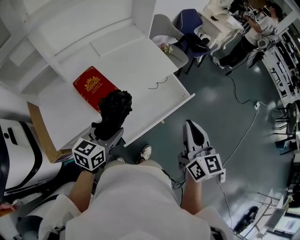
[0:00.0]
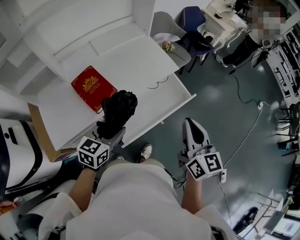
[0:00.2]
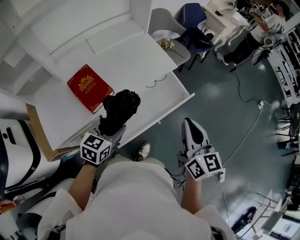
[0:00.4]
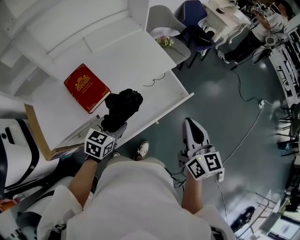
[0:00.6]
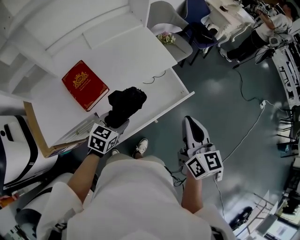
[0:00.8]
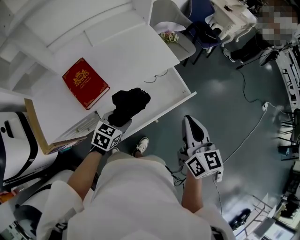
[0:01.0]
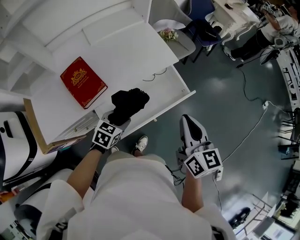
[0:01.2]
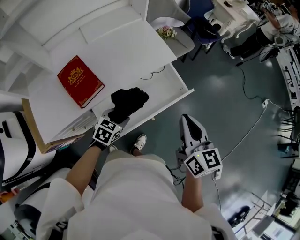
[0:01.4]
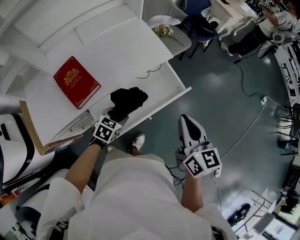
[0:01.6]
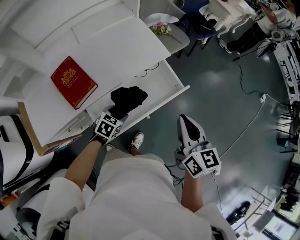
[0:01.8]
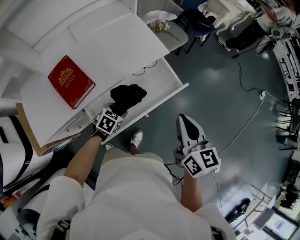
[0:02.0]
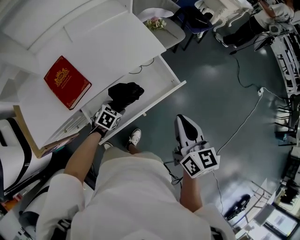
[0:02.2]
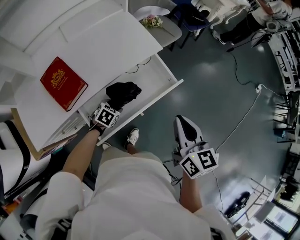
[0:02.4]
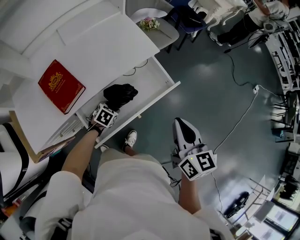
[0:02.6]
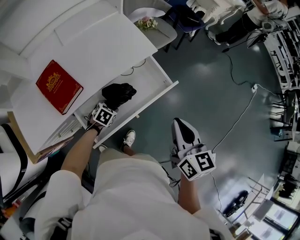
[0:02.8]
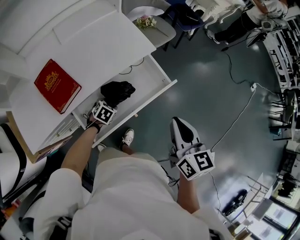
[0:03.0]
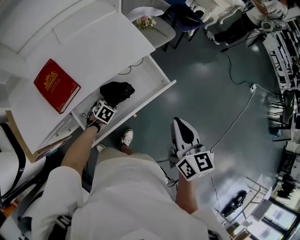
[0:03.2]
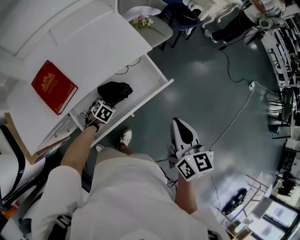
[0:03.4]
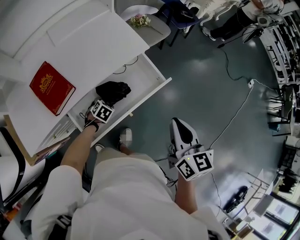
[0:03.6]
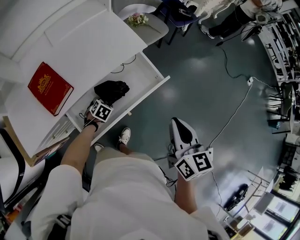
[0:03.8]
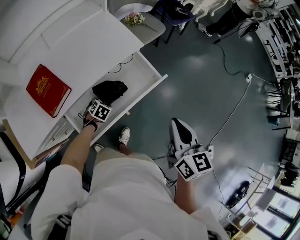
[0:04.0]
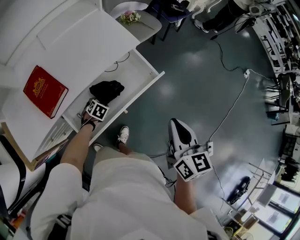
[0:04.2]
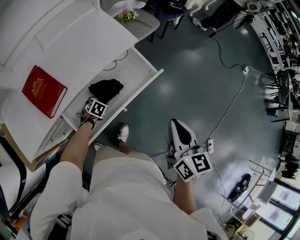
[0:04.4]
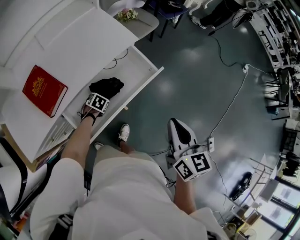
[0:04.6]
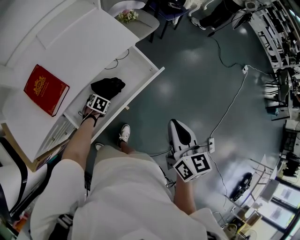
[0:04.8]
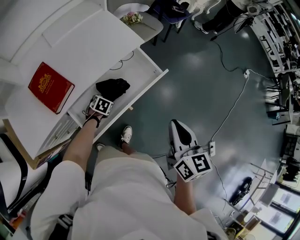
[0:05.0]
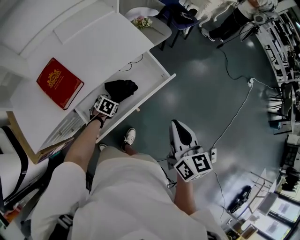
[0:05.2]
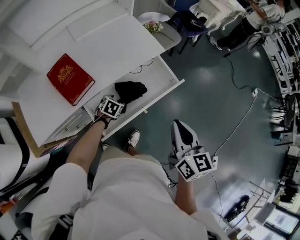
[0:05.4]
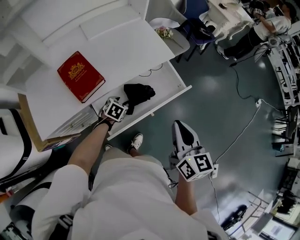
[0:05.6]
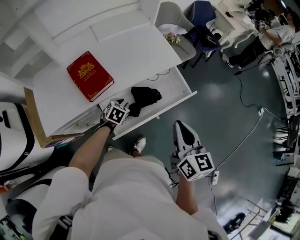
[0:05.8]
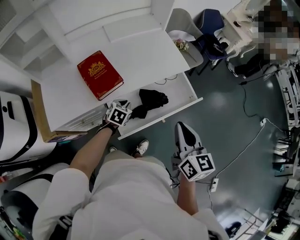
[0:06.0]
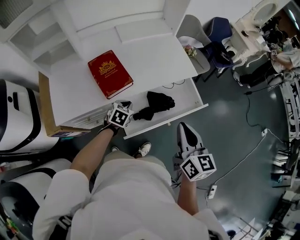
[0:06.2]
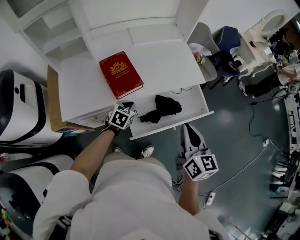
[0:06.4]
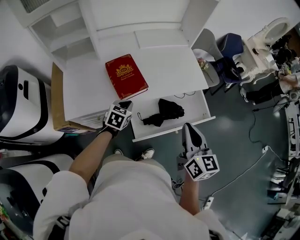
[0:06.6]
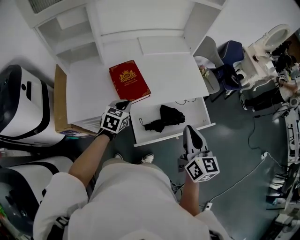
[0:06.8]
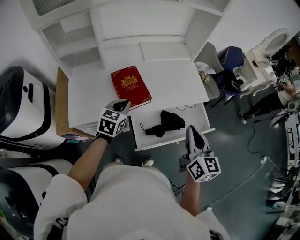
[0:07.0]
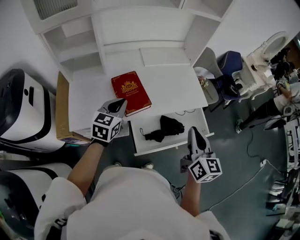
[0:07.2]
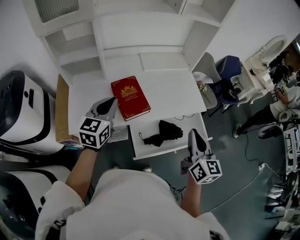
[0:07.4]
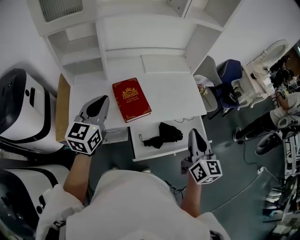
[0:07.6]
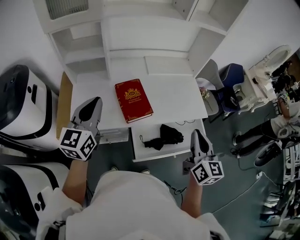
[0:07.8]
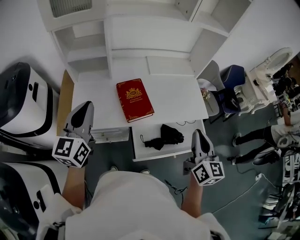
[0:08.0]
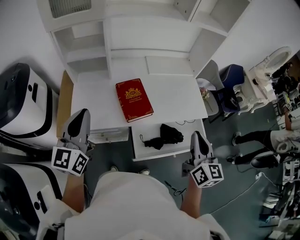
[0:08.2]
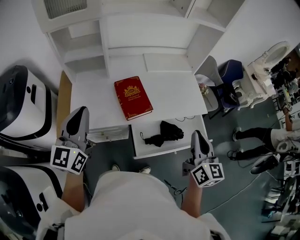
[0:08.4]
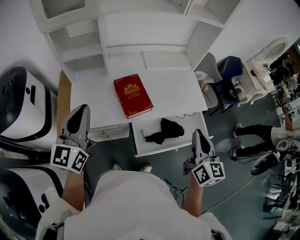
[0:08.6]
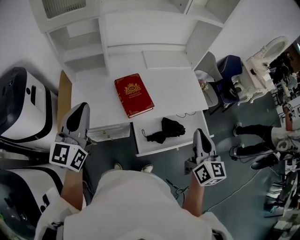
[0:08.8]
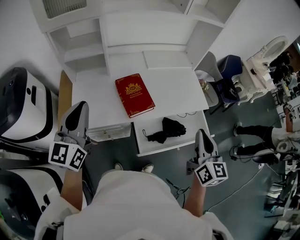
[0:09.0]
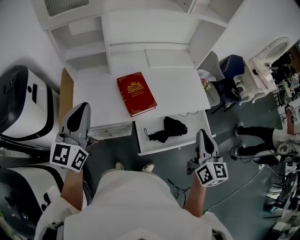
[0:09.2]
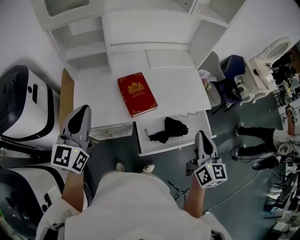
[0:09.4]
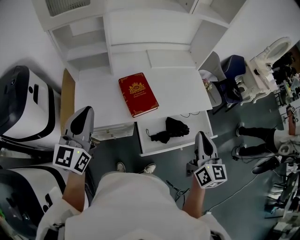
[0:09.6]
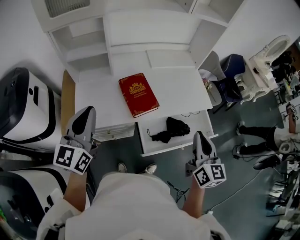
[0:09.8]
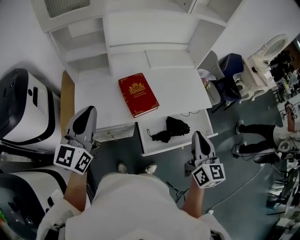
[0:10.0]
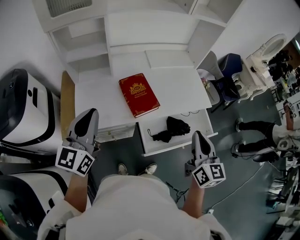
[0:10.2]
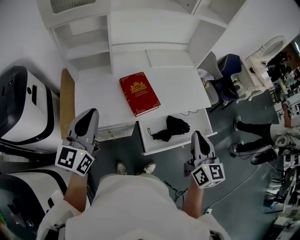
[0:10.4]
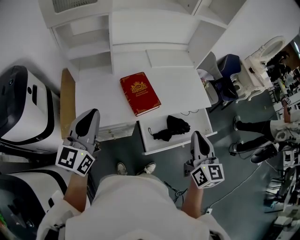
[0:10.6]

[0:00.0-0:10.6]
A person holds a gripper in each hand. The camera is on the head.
0:00.0 to 0:01.6: The right gripper goes some 15 cm forward, downward and to the right, while the left gripper travels downward, forward and to the right by about 25 cm, and swivels approximately 30 degrees.
0:01.6 to 0:03.0: The left gripper travels downward and forward by roughly 15 cm.
0:03.0 to 0:04.6: The right gripper moves about 5 cm; the left gripper shifts about 5 cm downward.
0:04.6 to 0:06.0: The right gripper moves about 15 cm. Meanwhile the left gripper shifts approximately 15 cm upward, turns by about 30 degrees, and closes its fingers.
0:06.0 to 0:07.6: The right gripper goes about 15 cm forward, upward and to the left. Meanwhile the left gripper moves upward and to the left, some 40 cm, and angles its fingers upward, by approximately 40 degrees.
0:07.6 to 0:09.0: The left gripper is displaced to the left, backward and upward by about 10 cm.
0:09.0 to 0:10.6: The right gripper shifts approximately 5 cm to the left.

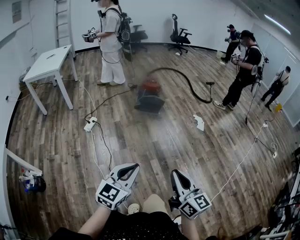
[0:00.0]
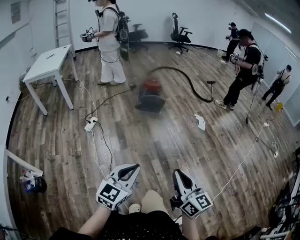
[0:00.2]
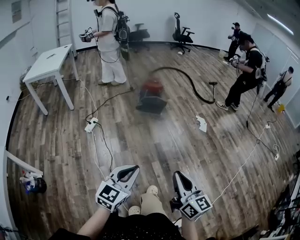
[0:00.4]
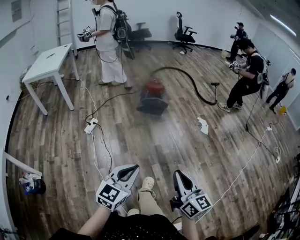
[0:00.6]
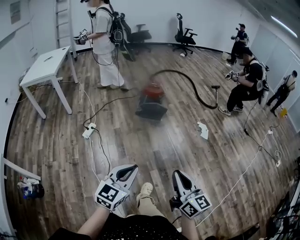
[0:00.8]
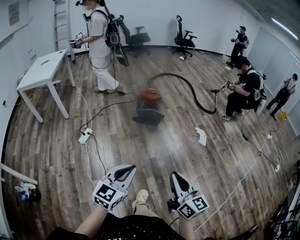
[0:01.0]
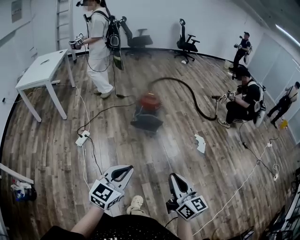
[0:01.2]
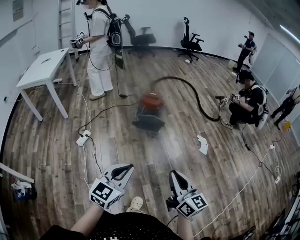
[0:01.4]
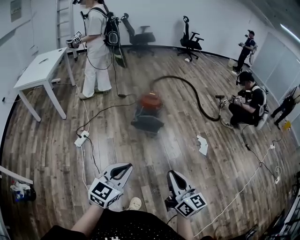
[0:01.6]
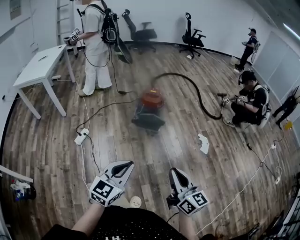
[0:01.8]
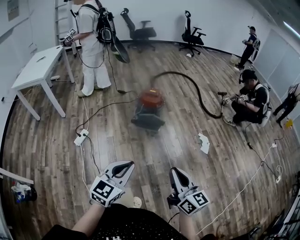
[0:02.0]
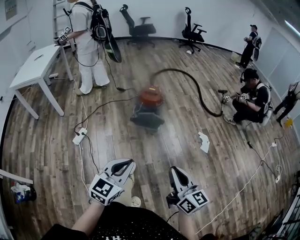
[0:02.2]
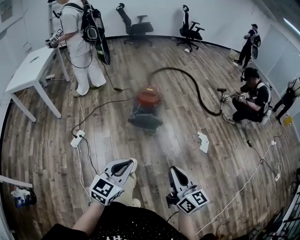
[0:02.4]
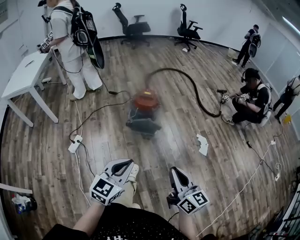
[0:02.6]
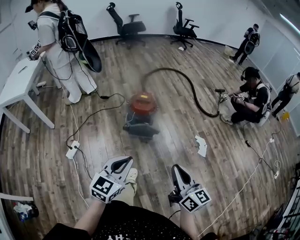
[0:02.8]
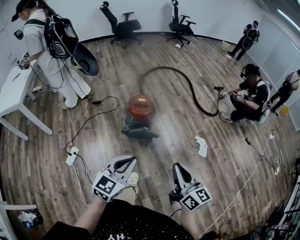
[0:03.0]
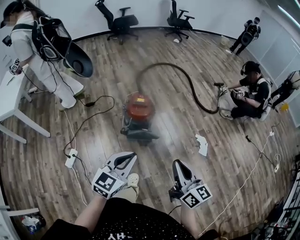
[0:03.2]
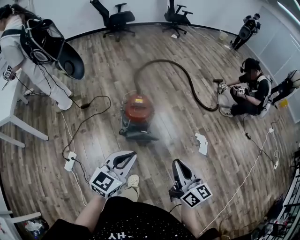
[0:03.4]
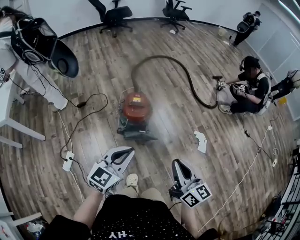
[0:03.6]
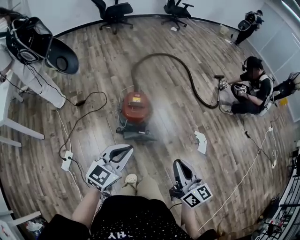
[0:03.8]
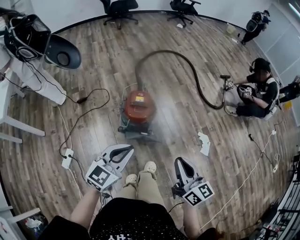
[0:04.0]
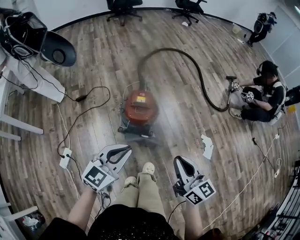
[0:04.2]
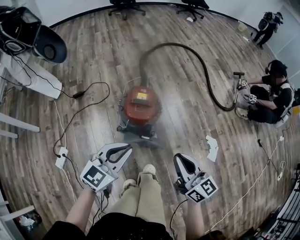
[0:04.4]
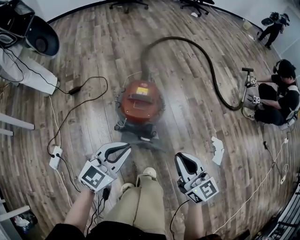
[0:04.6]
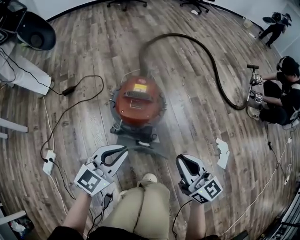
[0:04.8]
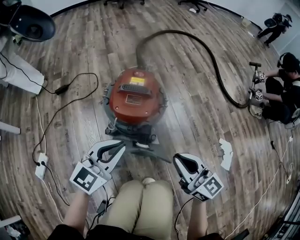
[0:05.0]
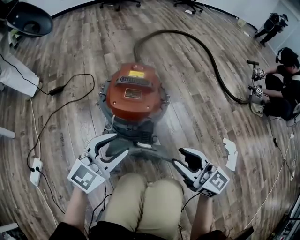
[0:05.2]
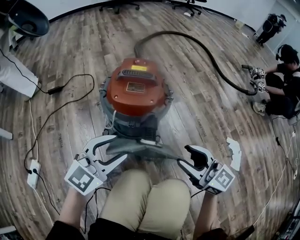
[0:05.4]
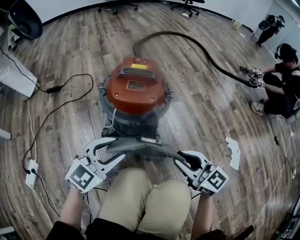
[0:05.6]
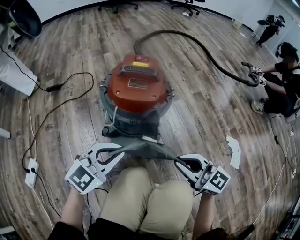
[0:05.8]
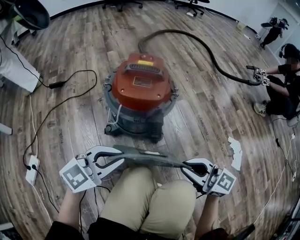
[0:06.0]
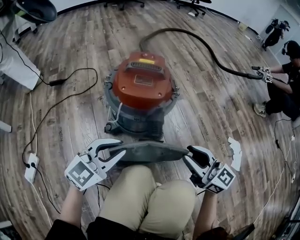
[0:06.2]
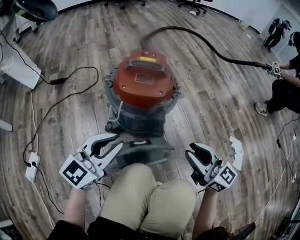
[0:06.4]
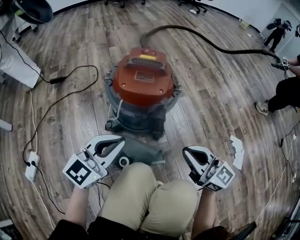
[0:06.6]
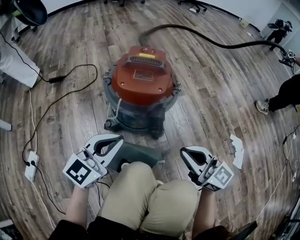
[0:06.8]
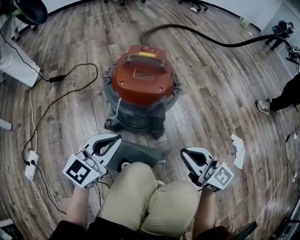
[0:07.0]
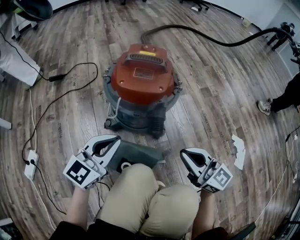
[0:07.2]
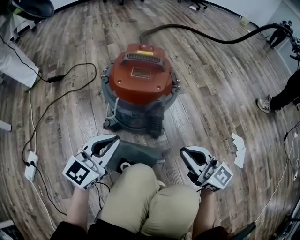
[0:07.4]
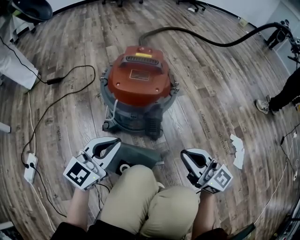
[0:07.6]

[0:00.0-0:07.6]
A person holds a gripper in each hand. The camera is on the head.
0:00.0 to 0:01.6: The grippers both shift forward by roughly 35 cm.
0:01.6 to 0:03.0: Both grippers travel together forward, about 30 cm.
0:03.0 to 0:04.6: The grippers both shift forward and downward by roughly 40 cm.
0:04.6 to 0:06.0: Both grippers travel together downward, about 30 cm. The right gripper turns by some 20 degrees, and opens and closes again. The left gripper opens, then closes once more.

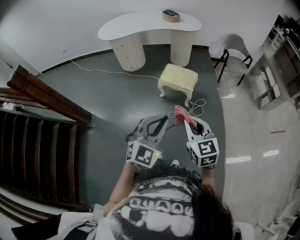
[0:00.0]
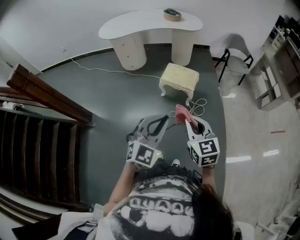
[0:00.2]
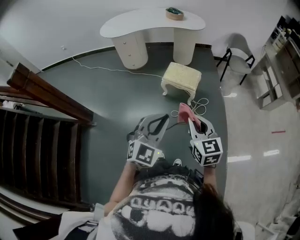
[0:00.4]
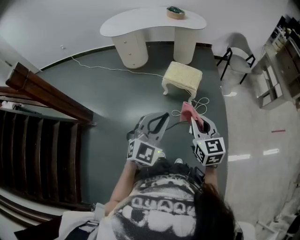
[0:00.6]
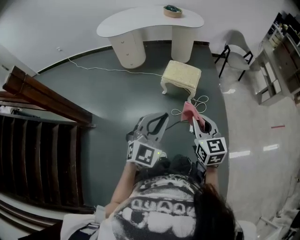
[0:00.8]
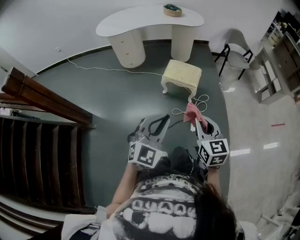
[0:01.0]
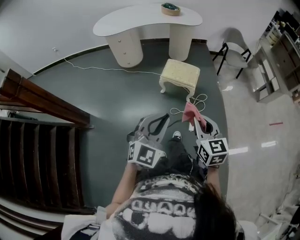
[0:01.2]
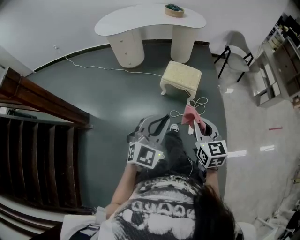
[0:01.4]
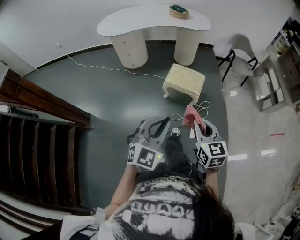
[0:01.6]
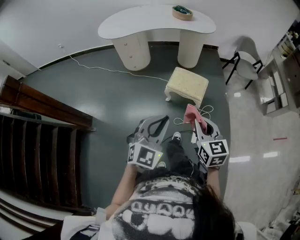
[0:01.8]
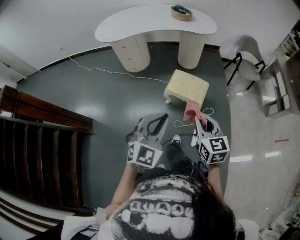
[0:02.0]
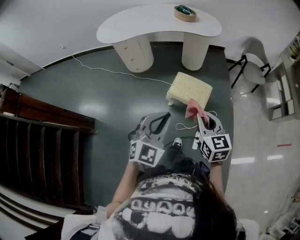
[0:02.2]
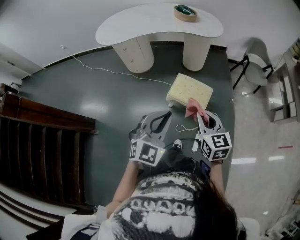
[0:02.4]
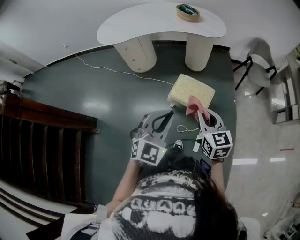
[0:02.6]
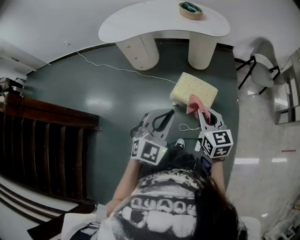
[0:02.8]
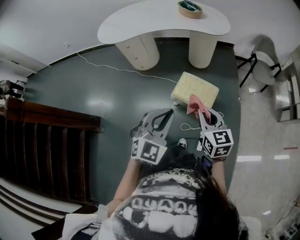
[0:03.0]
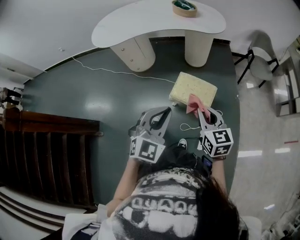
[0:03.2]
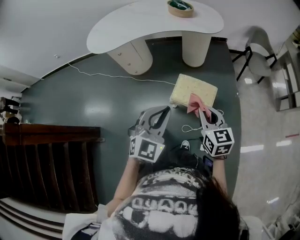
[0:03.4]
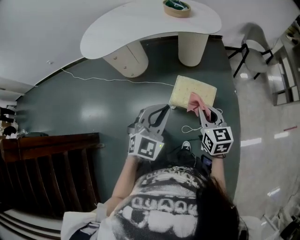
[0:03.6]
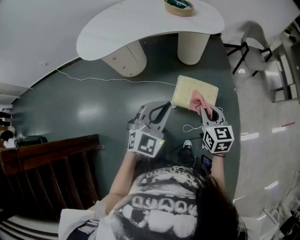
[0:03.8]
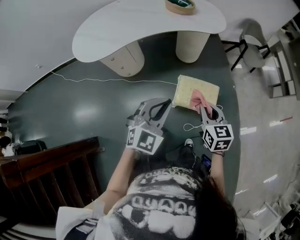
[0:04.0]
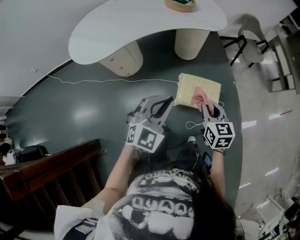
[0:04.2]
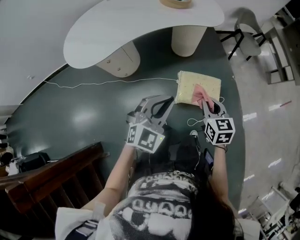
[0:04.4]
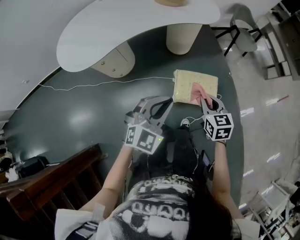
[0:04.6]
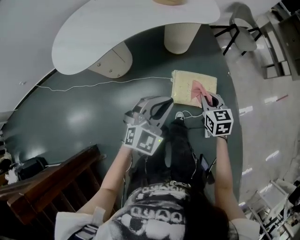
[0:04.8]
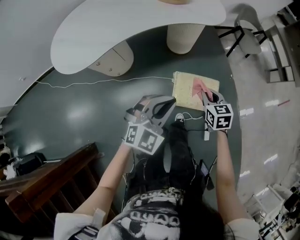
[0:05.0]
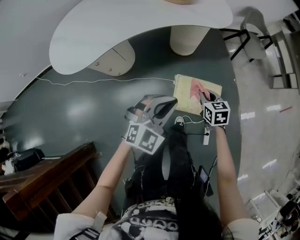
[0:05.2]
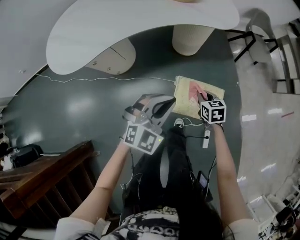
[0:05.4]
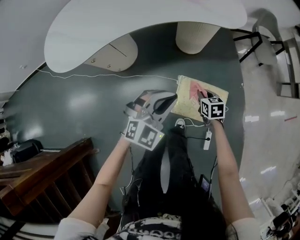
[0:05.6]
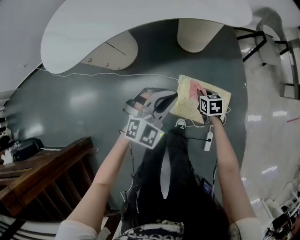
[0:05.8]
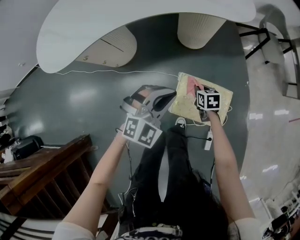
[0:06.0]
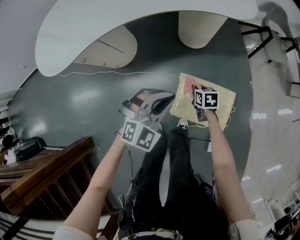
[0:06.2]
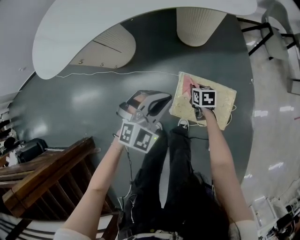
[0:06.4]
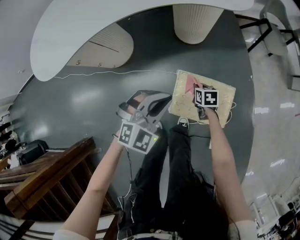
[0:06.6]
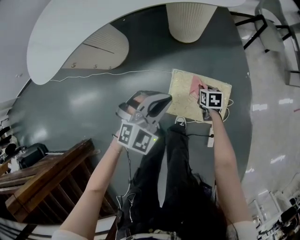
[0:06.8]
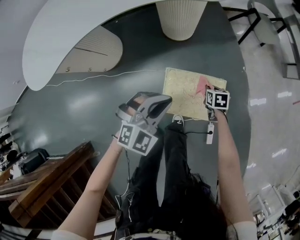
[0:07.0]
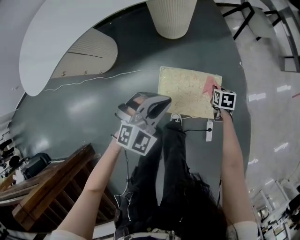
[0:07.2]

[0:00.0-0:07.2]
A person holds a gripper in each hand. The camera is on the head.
0:00.0 to 0:01.4: The right gripper changes place by roughly 5 cm. Meanwhile the left gripper is displaced to the left and forward by some 10 cm.
0:01.4 to 0:02.8: The two grippers go approximately 30 cm forward.
0:02.8 to 0:04.4: The left gripper changes place by about 30 cm, and changes its angle by roughly 30 degrees. Meanwhile the right gripper shifts by approximately 25 cm, and turns by roughly 30 degrees.
0:04.4 to 0:05.8: The right gripper travels downward and forward by some 40 cm, and turns by some 30 degrees, while the left gripper shifts roughly 25 cm downward and forward.
0:05.8 to 0:07.2: The right gripper is displaced to the right and downward by roughly 25 cm, and rotates about 20 degrees, while the left gripper travels to the right and downward by some 10 cm.
